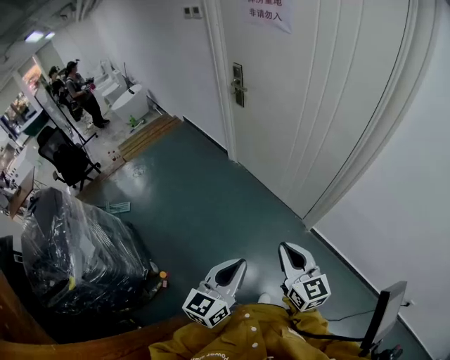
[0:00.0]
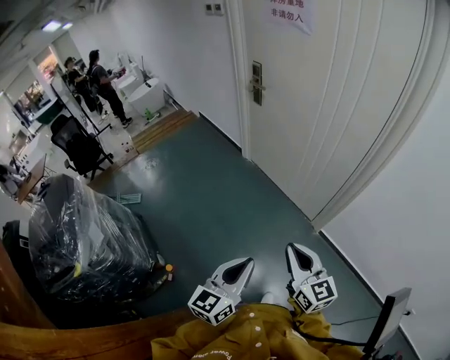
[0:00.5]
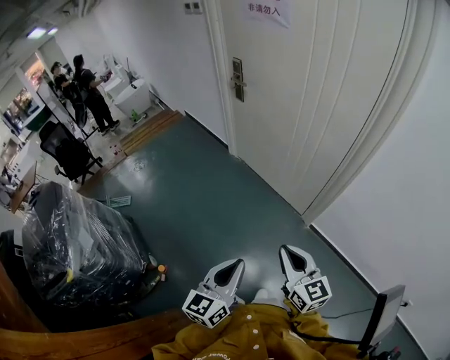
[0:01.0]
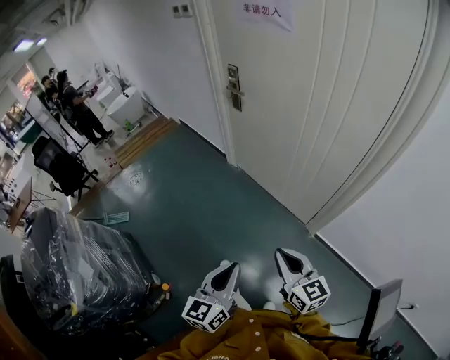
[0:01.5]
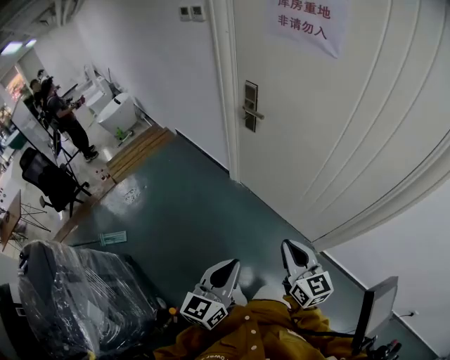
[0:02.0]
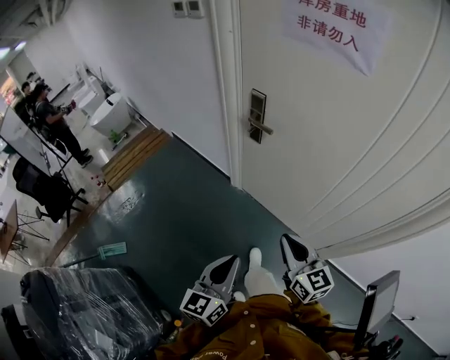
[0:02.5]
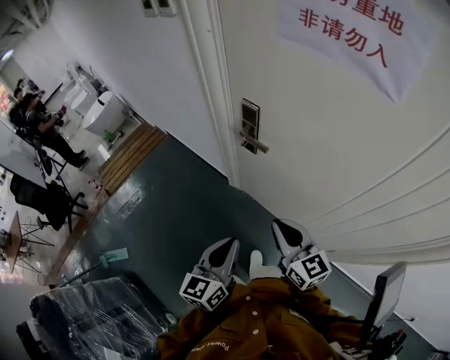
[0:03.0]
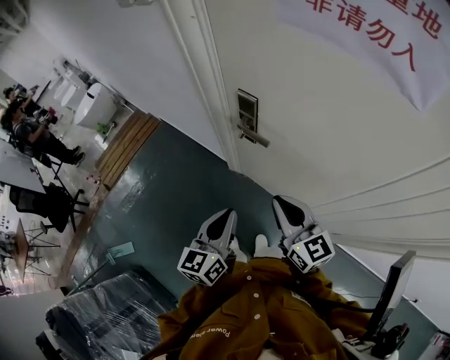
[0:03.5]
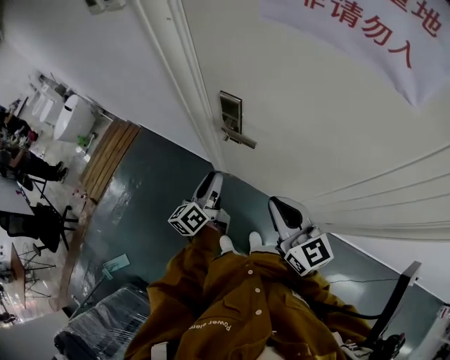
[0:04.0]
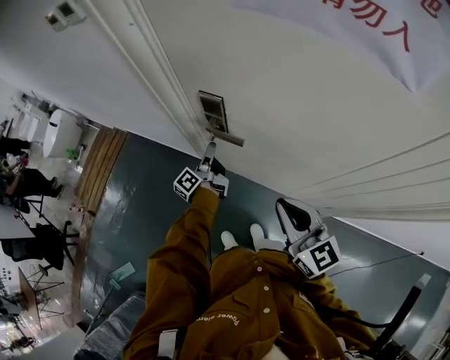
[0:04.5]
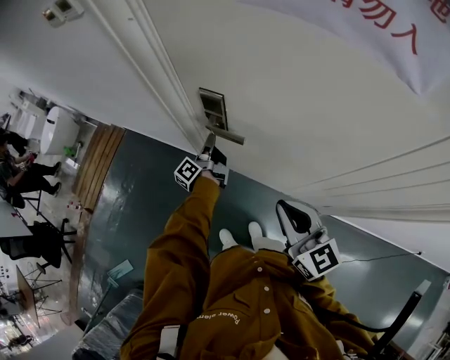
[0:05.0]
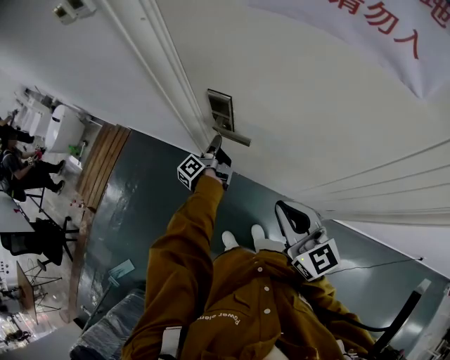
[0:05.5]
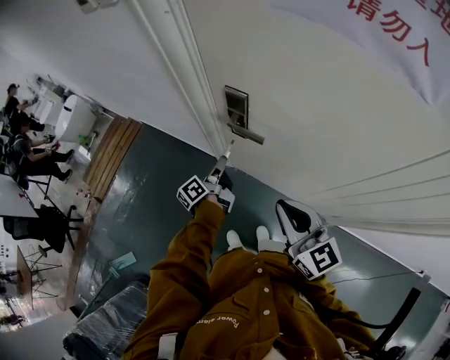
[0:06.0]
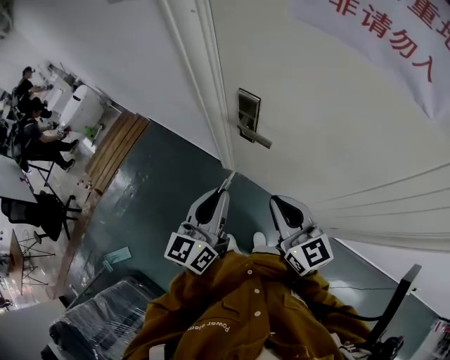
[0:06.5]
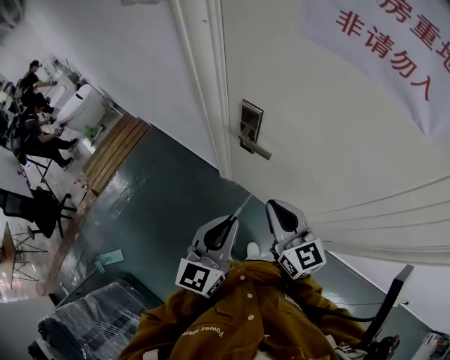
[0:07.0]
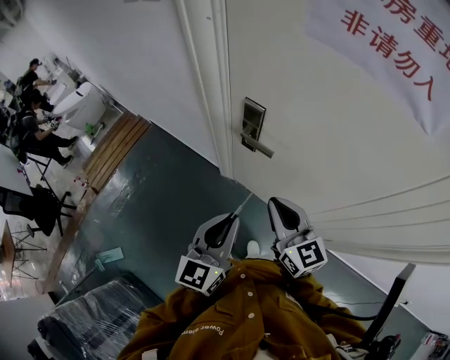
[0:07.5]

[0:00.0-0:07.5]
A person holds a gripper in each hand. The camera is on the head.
0:00.0 to 0:02.0: The grippers both shift forward and to the left by about 30 cm.
0:02.0 to 0:04.0: The grippers both shift forward by about 50 cm. The left gripper swivels roughly 30 degrees, and opens its fingers.
0:04.0 to 0:05.5: The left gripper moves forward and downward, about 20 cm, changes its angle by some 30 degrees, and closes.
0:05.5 to 0:07.5: The left gripper shifts about 35 cm backward and upward, and rotates around the line of its fingers by some 70 degrees, clockwise from behind; the right gripper heads to the left, covering approximately 5 cm.

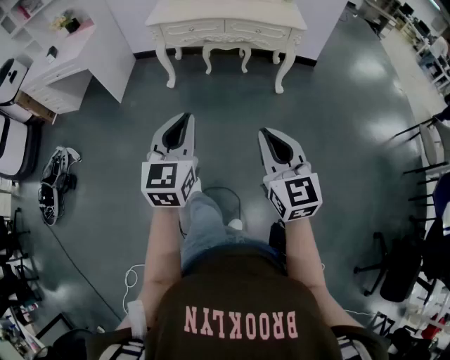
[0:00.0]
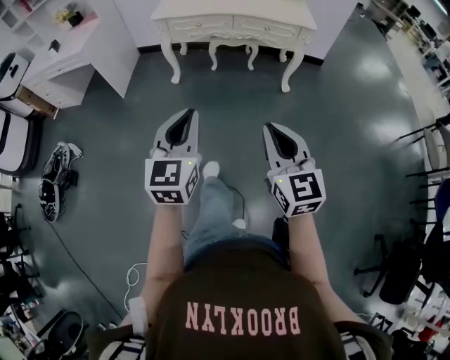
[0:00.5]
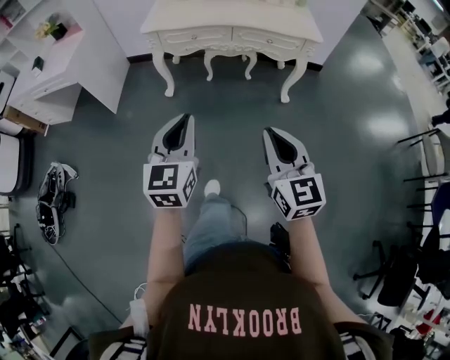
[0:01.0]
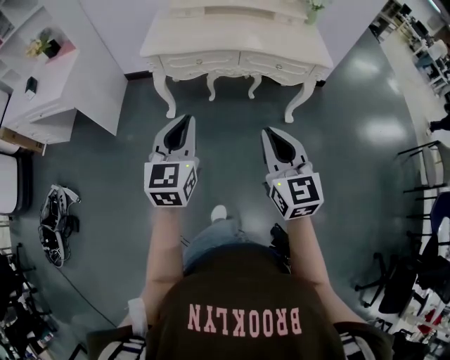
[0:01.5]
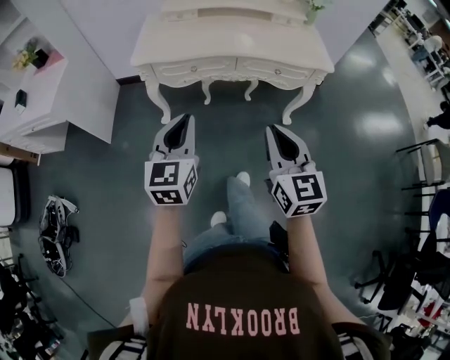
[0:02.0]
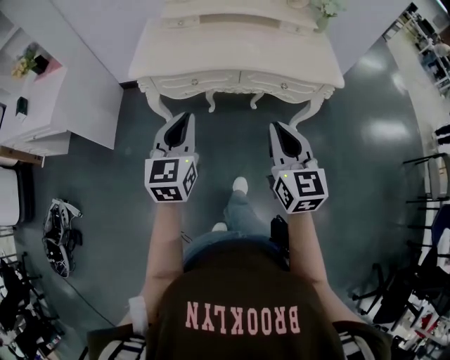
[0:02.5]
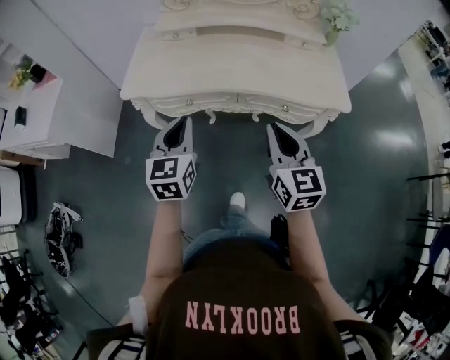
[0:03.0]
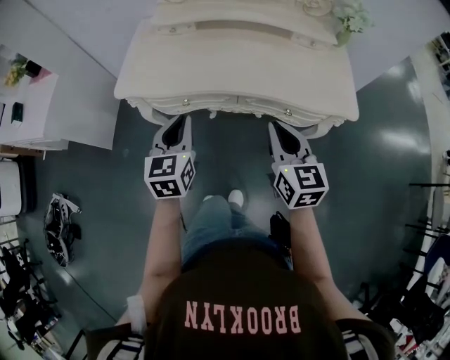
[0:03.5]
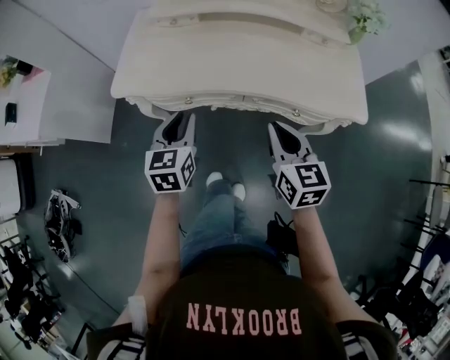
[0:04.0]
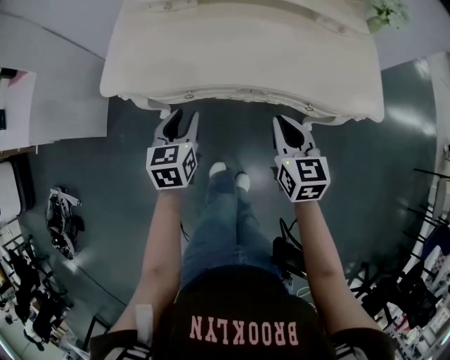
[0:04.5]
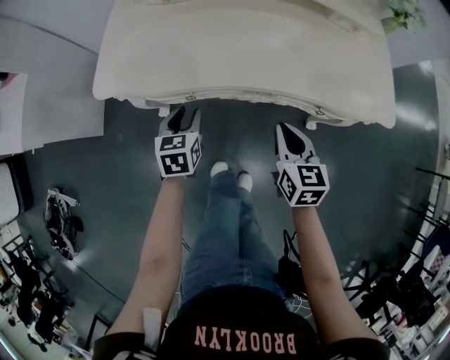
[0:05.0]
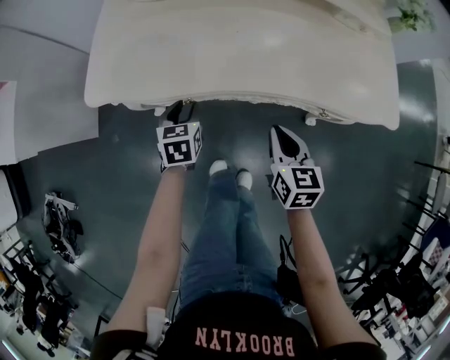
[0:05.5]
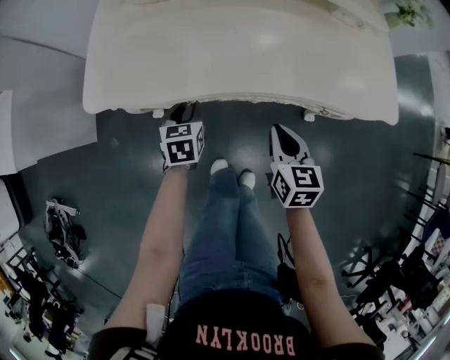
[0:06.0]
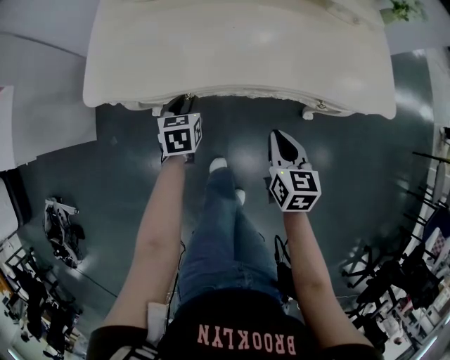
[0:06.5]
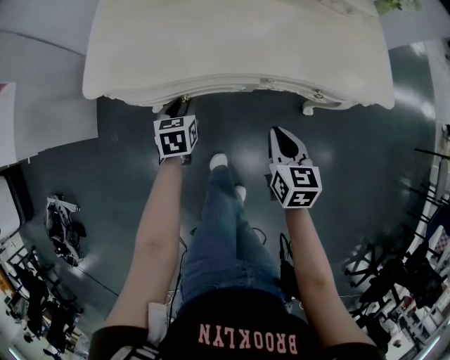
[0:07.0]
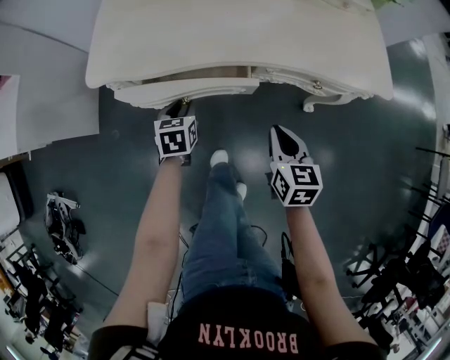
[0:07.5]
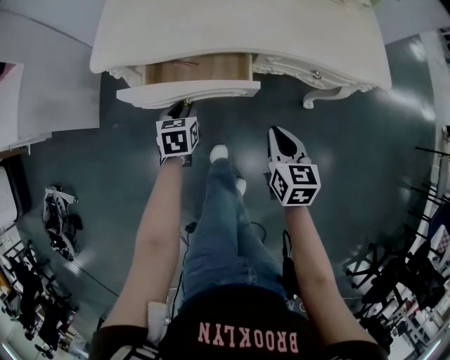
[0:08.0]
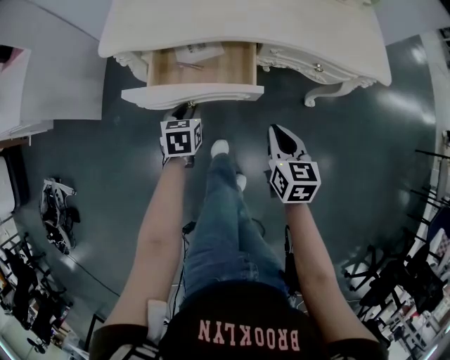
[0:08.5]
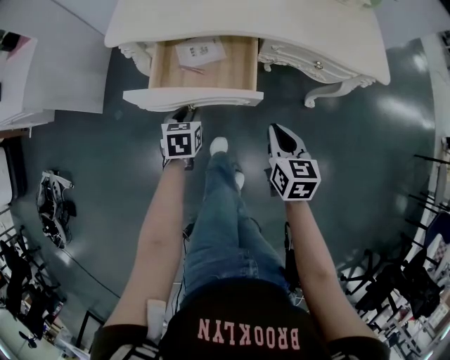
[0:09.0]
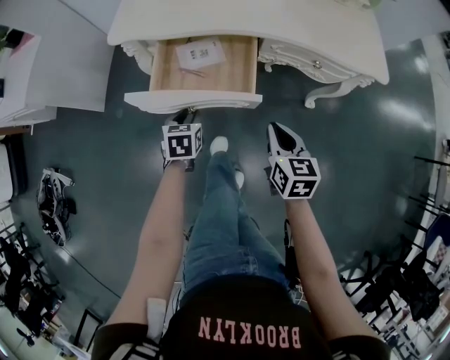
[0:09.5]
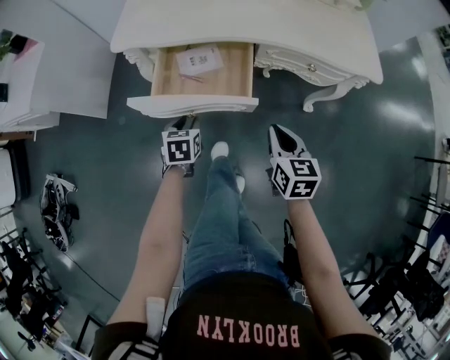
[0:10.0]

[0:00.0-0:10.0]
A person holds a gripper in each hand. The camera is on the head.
0:00.0 to 0:02.0: Both grippers are carried forward, approximately 50 cm.
0:02.0 to 0:04.0: Both grippers move forward, some 30 cm. The left gripper turns by some 20 degrees.
0:04.0 to 0:06.0: The right gripper is displaced downward by about 15 cm, while the left gripper heads downward and forward, covering some 25 cm, and changes its angle by approximately 20 degrees.
0:06.0 to 0:08.0: The grippers both shift backward by roughly 15 cm.
0:08.0 to 0:10.0: The left gripper shifts approximately 10 cm backward. The right gripper heads backward, covering approximately 5 cm.

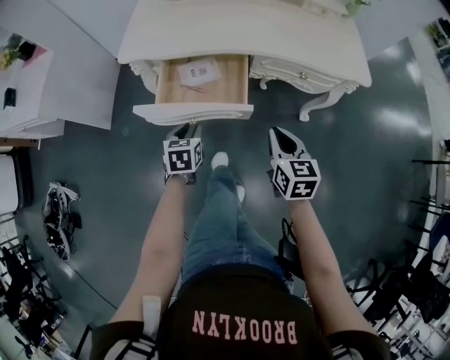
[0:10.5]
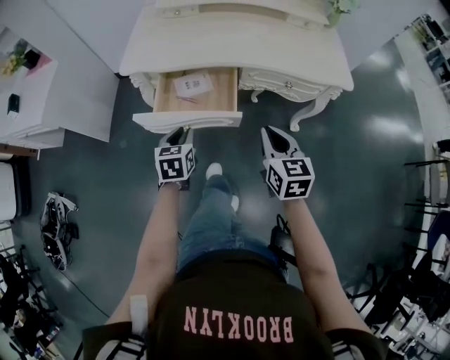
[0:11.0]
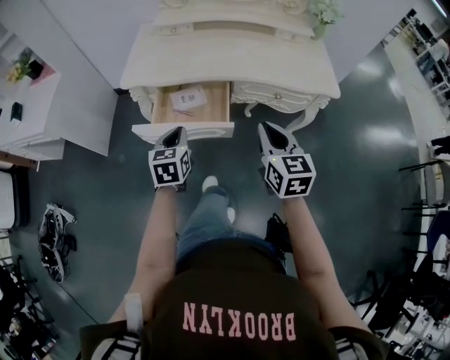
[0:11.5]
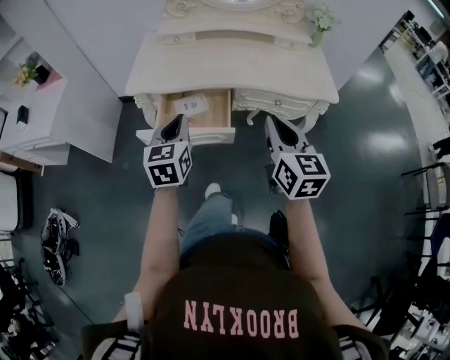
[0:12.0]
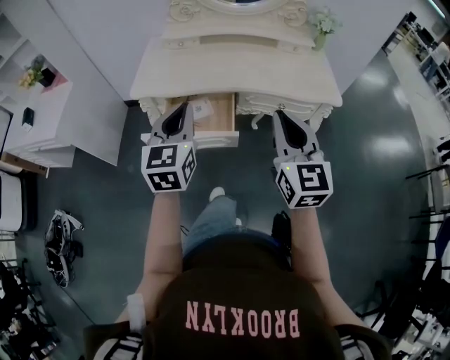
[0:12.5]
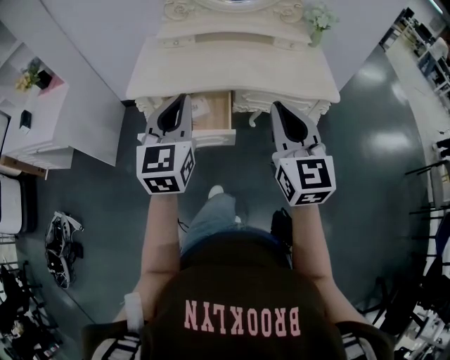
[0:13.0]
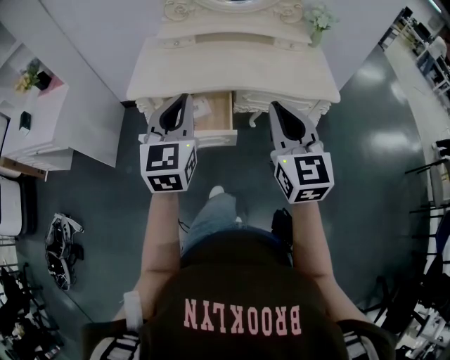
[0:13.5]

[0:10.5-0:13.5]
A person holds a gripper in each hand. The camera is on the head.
0:10.5 to 0:12.0: Both grippers move upward, some 20 cm. The right gripper changes its angle by approximately 20 degrees. The left gripper changes its angle by roughly 30 degrees, and closes its fingers.
0:12.0 to 0:13.5: The left gripper moves upward, about 10 cm, while the right gripper is displaced upward by roughly 5 cm.

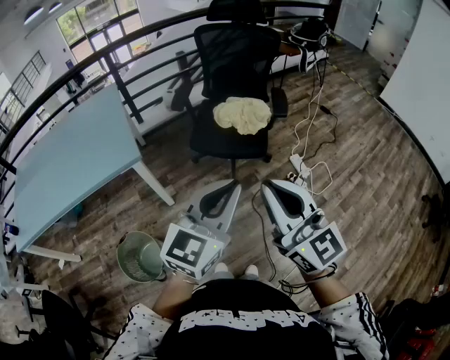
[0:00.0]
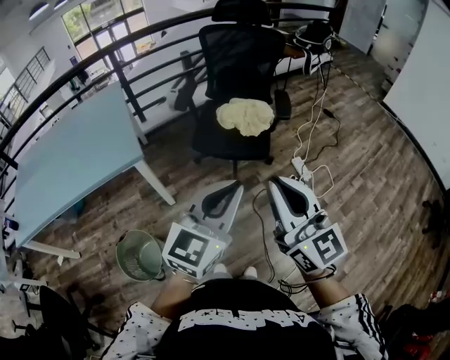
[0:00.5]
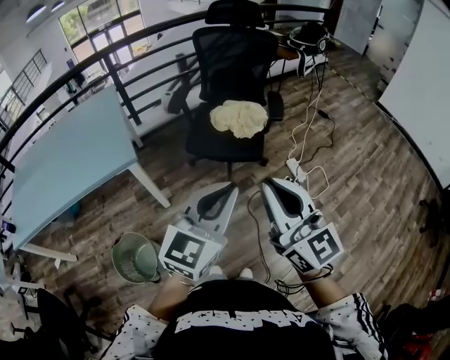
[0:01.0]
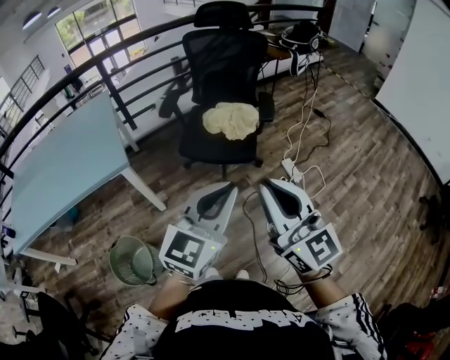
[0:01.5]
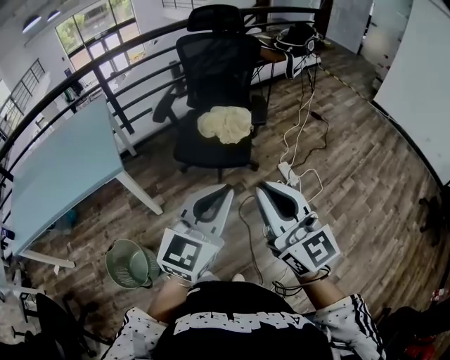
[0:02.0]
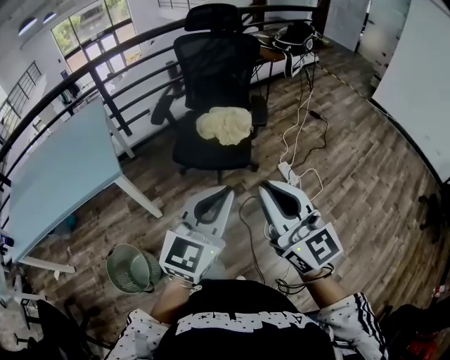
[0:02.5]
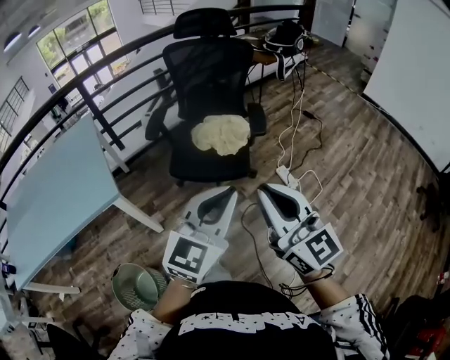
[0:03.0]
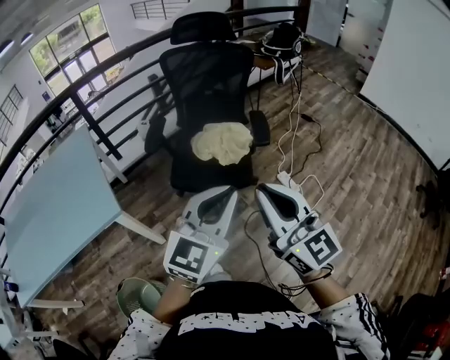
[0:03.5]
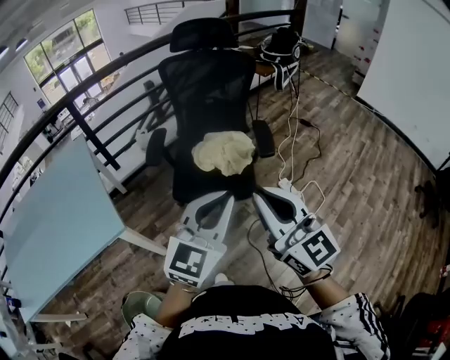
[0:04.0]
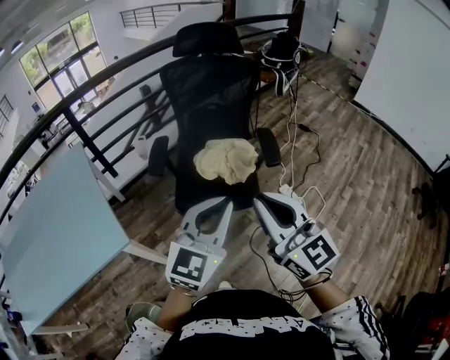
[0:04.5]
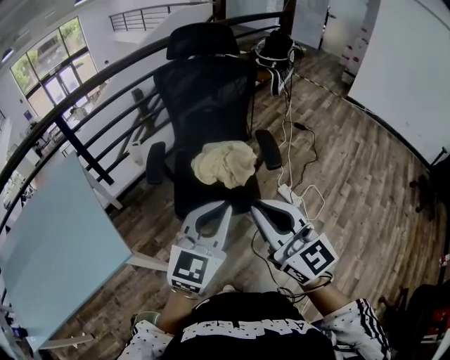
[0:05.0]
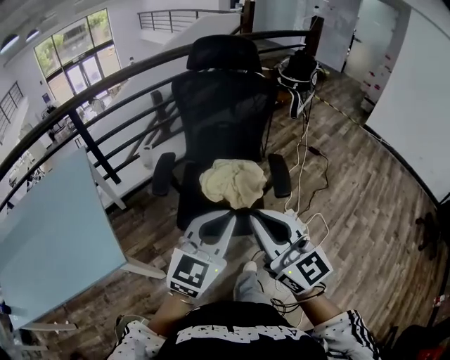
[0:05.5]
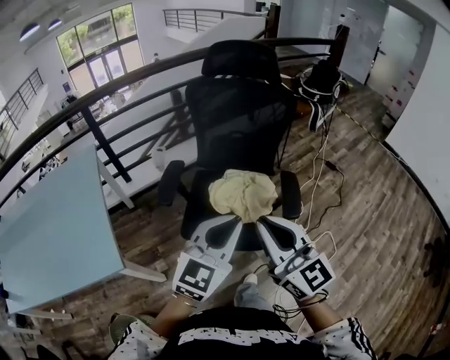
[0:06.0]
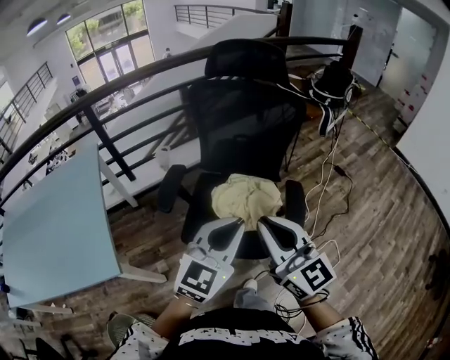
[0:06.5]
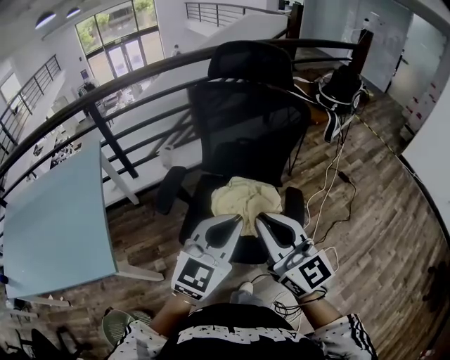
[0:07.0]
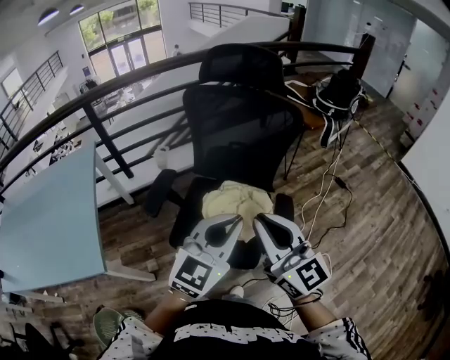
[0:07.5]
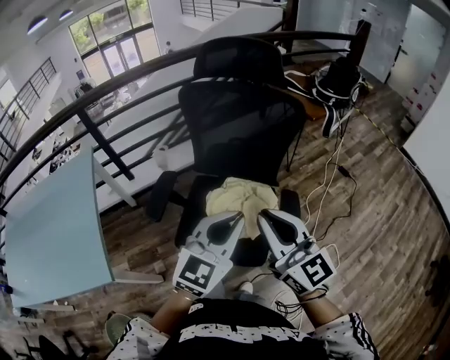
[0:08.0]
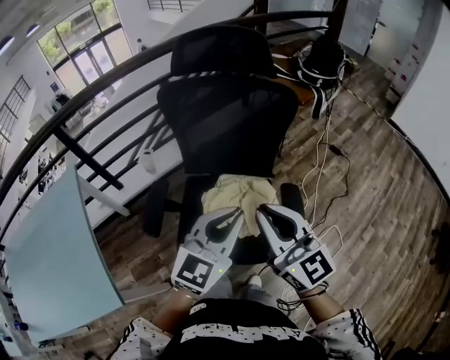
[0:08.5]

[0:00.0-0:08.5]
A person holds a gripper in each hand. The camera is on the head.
0:00.0 to 0:02.0: Both grippers move to the right, roughly 10 cm.
0:02.0 to 0:04.0: Both grippers travel together forward and to the left, roughly 20 cm.
0:04.0 to 0:06.5: The two grippers go about 25 cm forward.
0:06.5 to 0:08.5: Both grippers travel together forward, about 10 cm.
